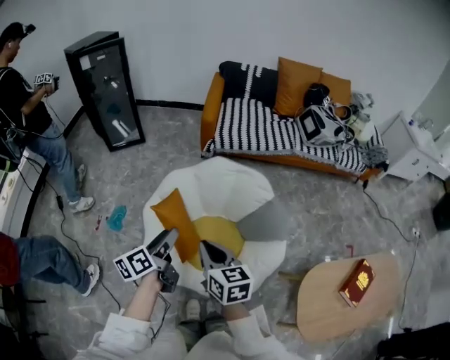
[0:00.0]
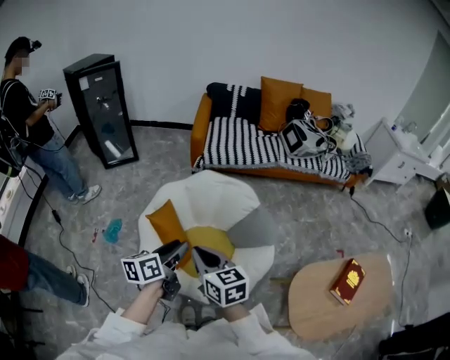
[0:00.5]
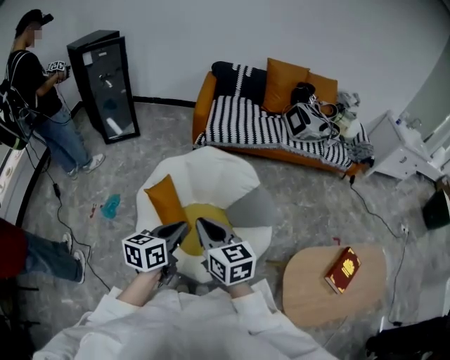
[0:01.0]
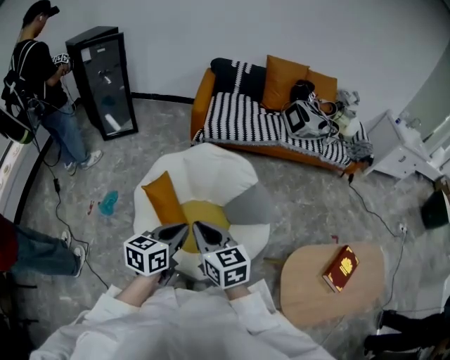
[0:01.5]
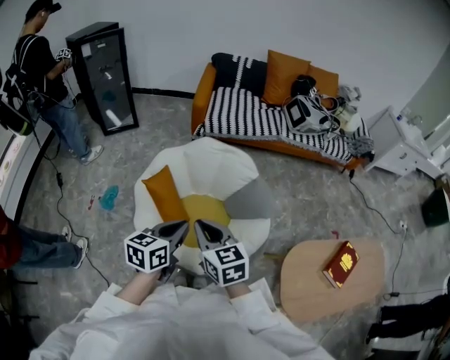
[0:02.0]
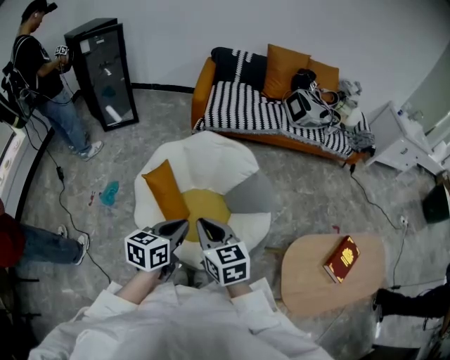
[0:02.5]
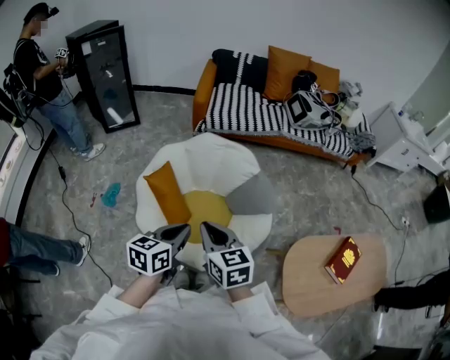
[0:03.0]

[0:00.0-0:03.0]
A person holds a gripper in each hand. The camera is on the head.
0:00.0 to 0:01.5: The left gripper is displaced to the right, backward and upward by approximately 15 cm, turns by roughly 40 degrees, and closes its fingers. Meanwhile the right gripper heads backward and upward, covering approximately 10 cm.
0:01.5 to 0:03.0: The grippers make only small movements.

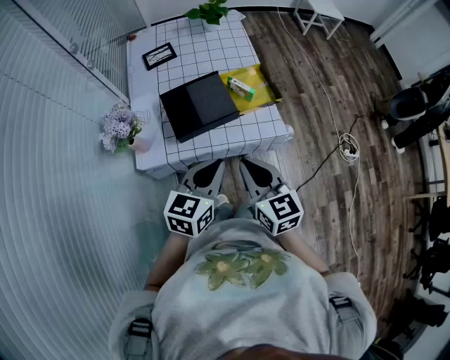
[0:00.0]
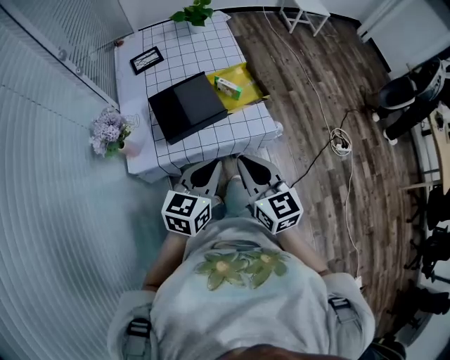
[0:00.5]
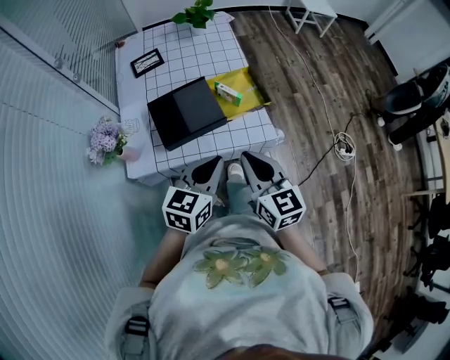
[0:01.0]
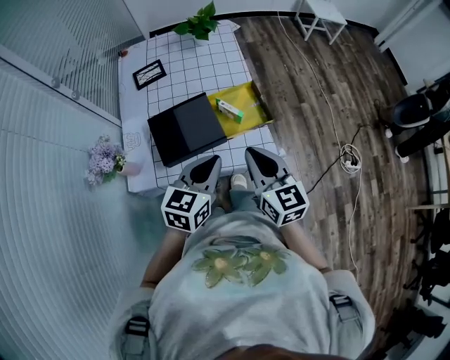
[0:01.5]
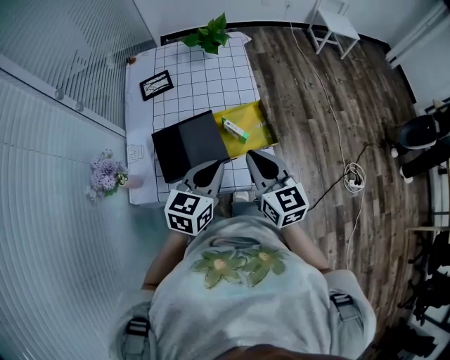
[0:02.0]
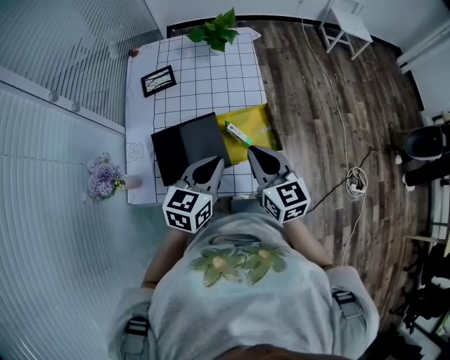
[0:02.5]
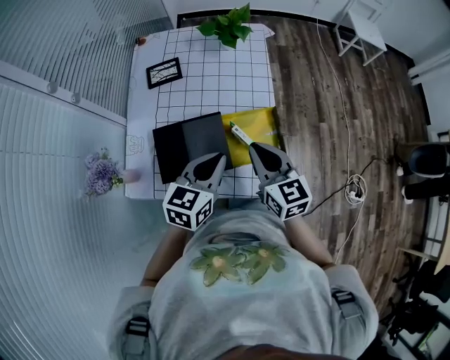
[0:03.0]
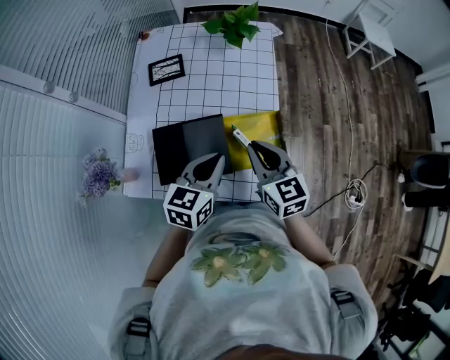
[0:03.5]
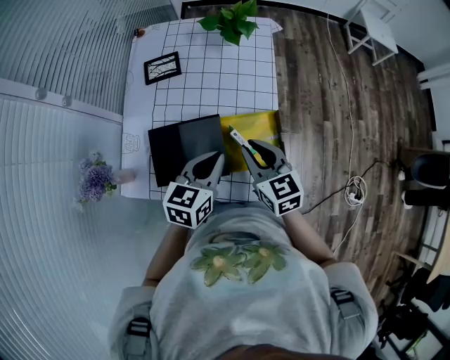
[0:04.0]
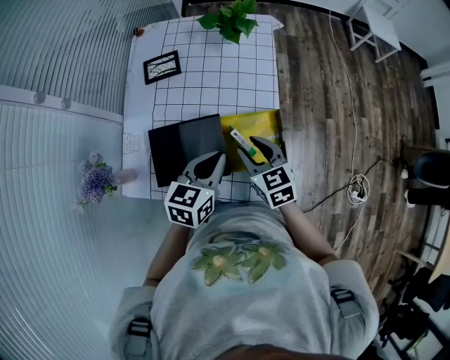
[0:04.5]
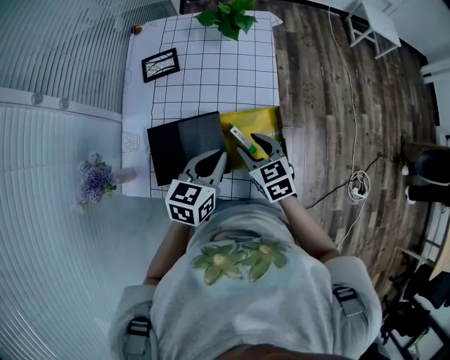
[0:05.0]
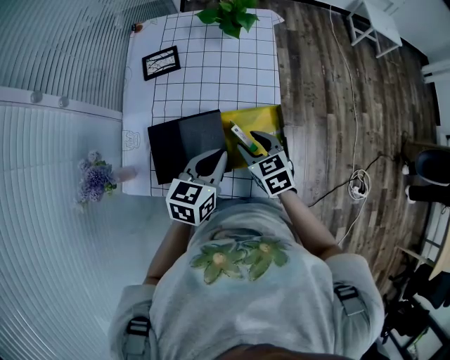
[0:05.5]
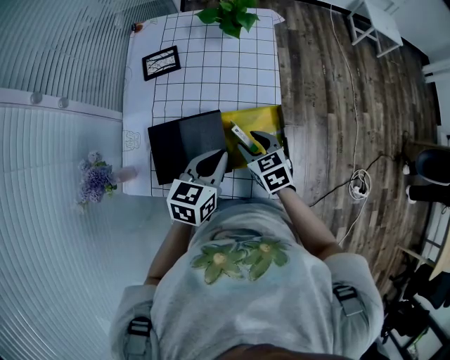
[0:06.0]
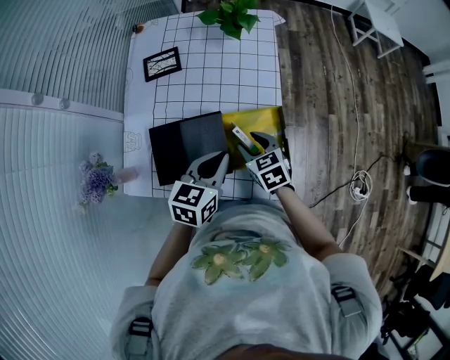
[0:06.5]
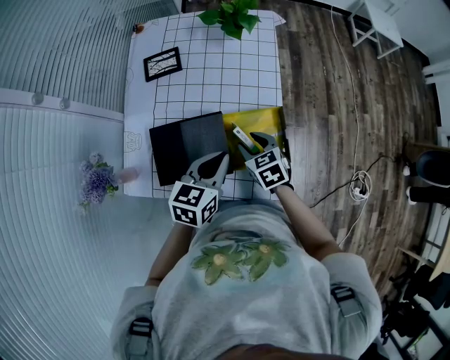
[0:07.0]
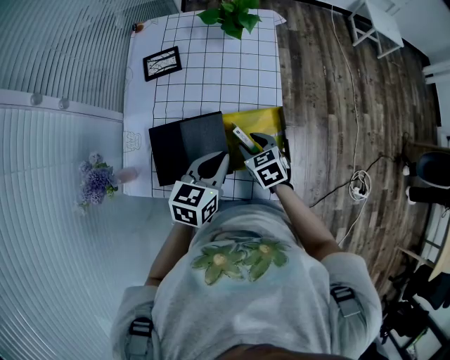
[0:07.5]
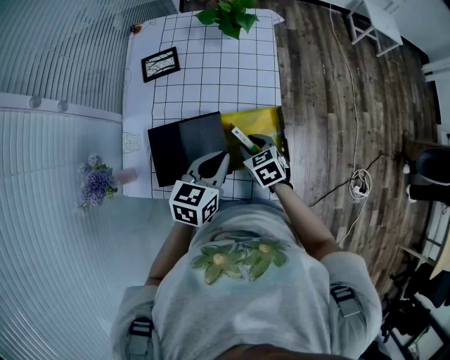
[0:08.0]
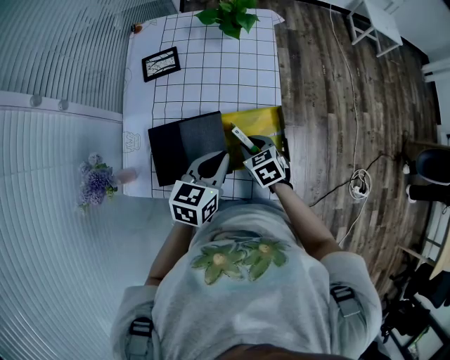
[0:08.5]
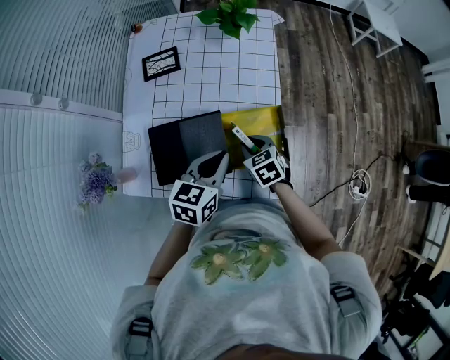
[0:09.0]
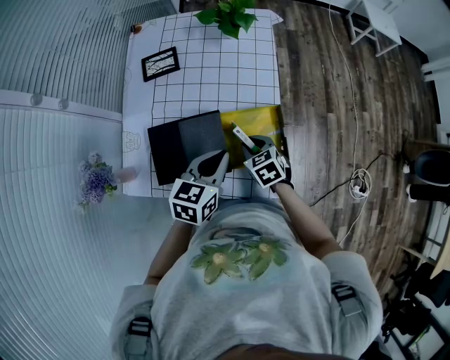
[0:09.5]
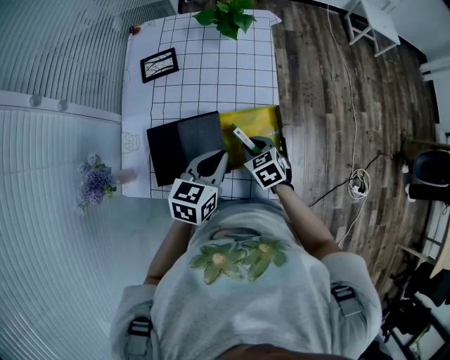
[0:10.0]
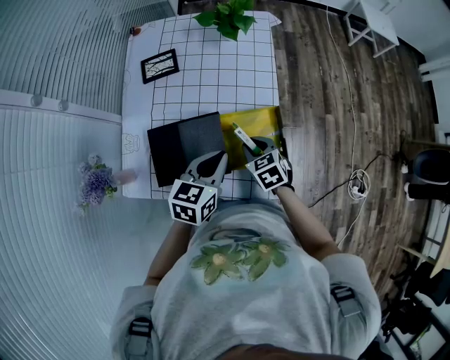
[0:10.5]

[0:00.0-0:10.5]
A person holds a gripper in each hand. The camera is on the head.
0:00.0 to 0:02.0: The grippers both shift forward by approximately 20 cm.
0:02.0 to 0:04.0: Both grippers move forward and downward, roughly 15 cm.
0:04.0 to 0:06.5: The right gripper moves downward, some 10 cm, rotates approximately 20 degrees, and opens.
0:06.5 to 0:10.5: The grippers move only a little.

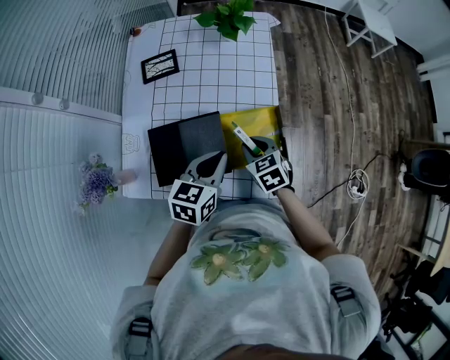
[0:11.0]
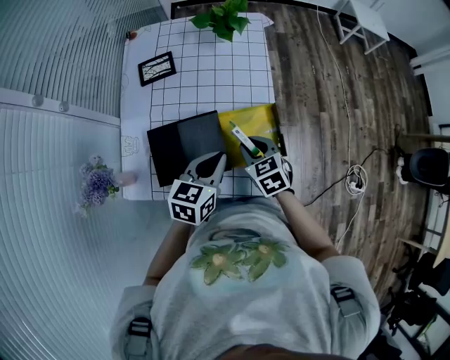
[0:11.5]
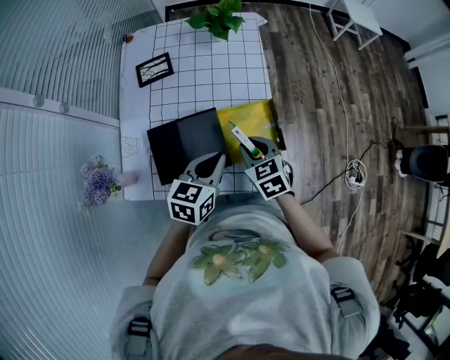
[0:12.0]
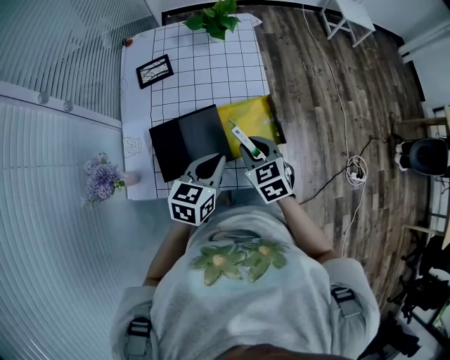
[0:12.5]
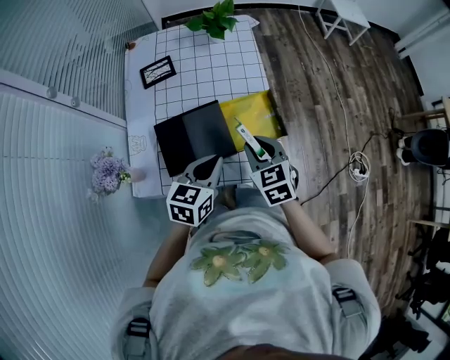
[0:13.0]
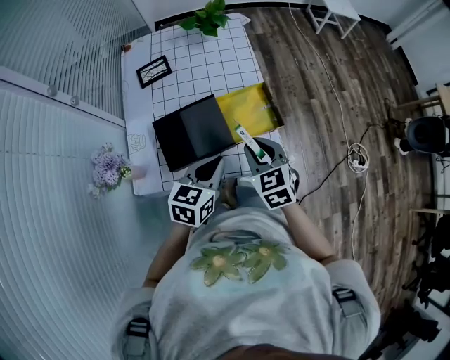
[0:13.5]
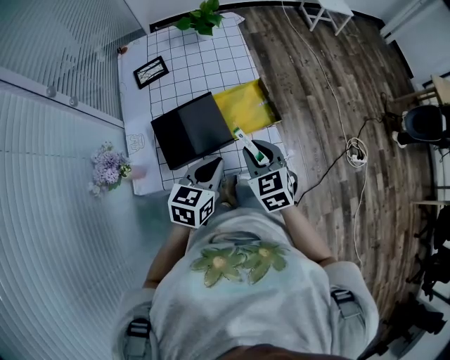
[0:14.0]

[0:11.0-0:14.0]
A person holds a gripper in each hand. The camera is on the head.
0:11.0 to 0:12.5: The right gripper moves upward and backward, approximately 10 cm, while the left gripper moves backward, roughly 5 cm.
0:12.5 to 0:14.0: Both grippers move backward, roughly 10 cm.

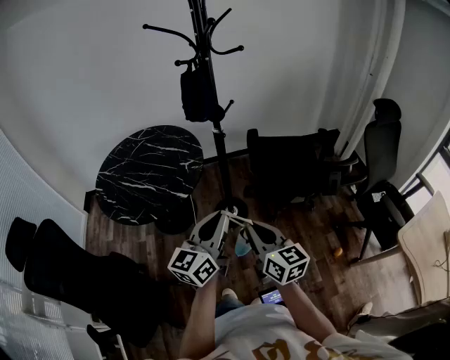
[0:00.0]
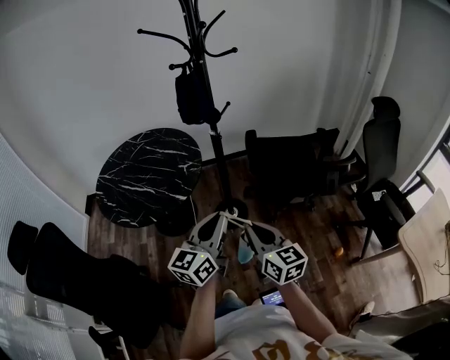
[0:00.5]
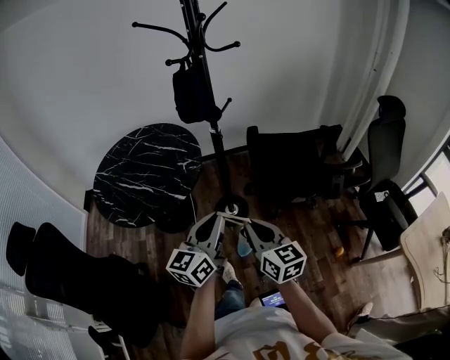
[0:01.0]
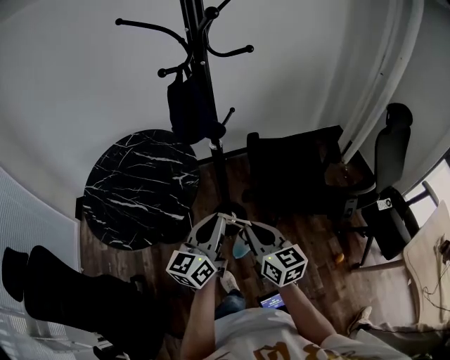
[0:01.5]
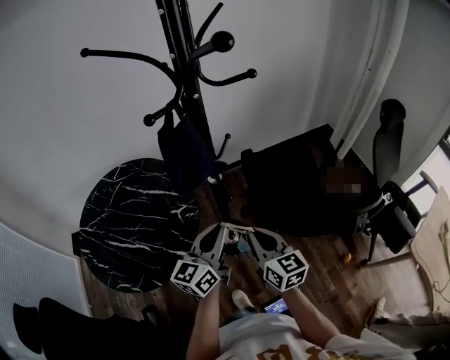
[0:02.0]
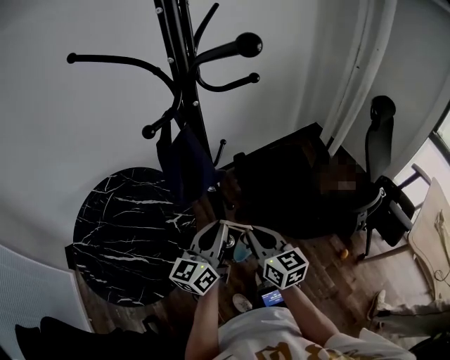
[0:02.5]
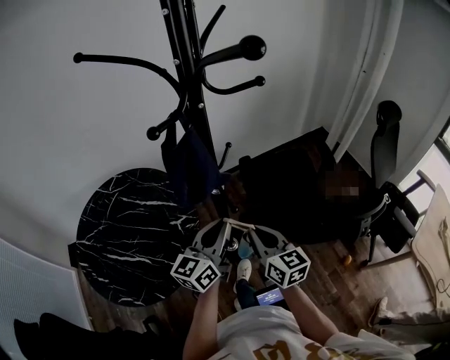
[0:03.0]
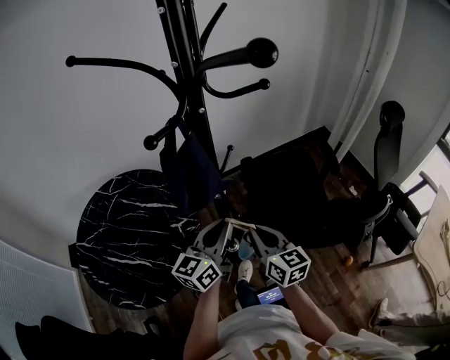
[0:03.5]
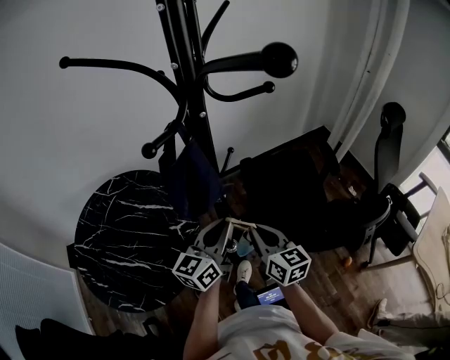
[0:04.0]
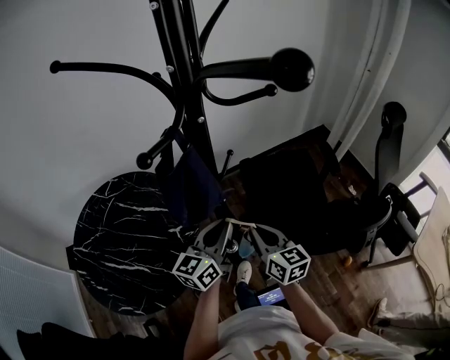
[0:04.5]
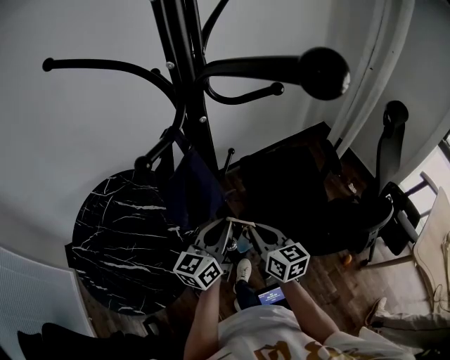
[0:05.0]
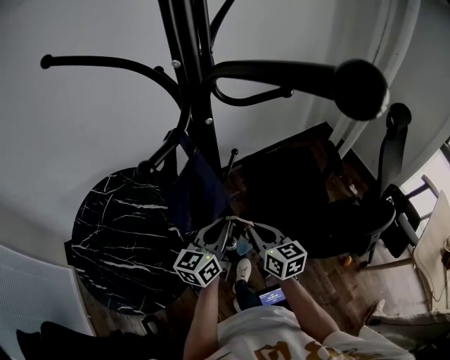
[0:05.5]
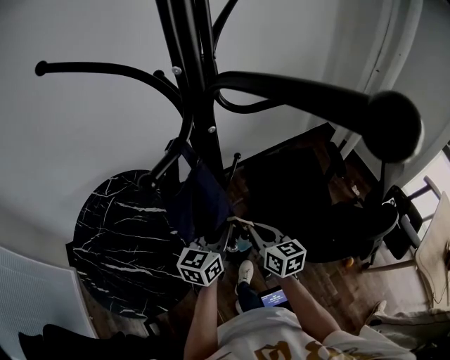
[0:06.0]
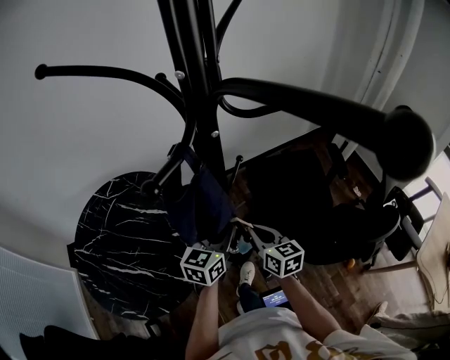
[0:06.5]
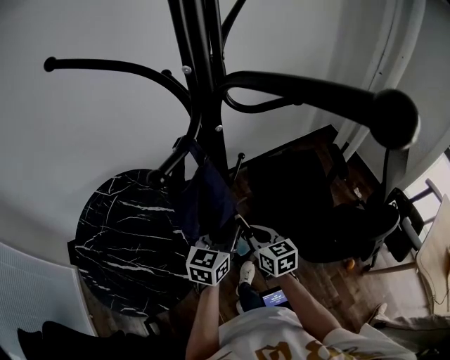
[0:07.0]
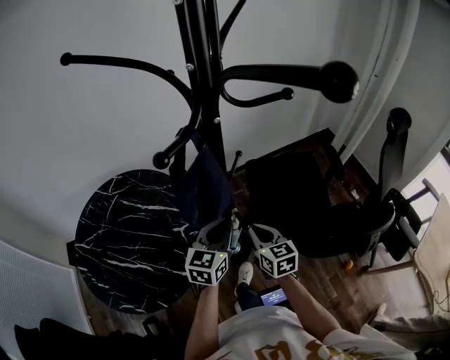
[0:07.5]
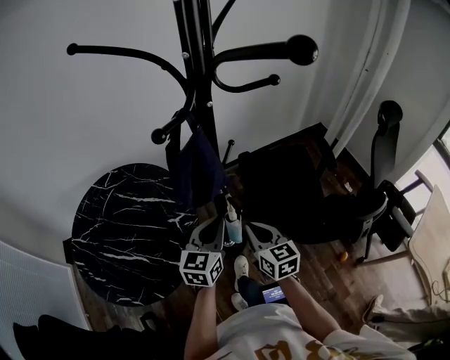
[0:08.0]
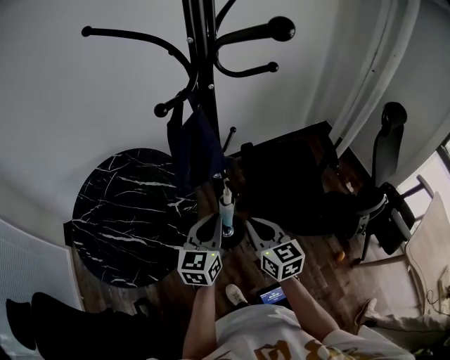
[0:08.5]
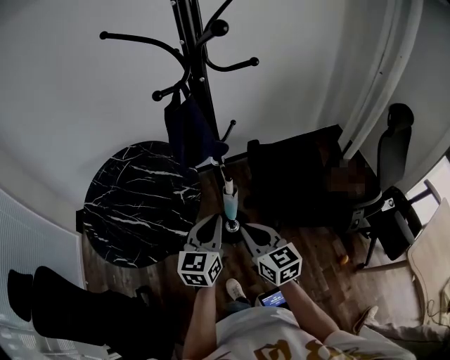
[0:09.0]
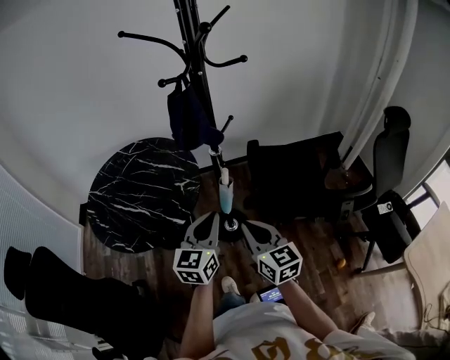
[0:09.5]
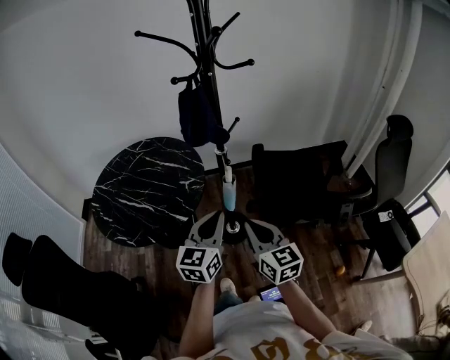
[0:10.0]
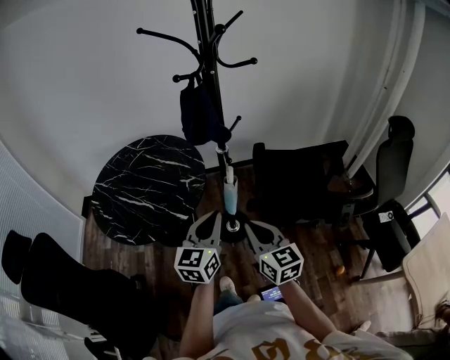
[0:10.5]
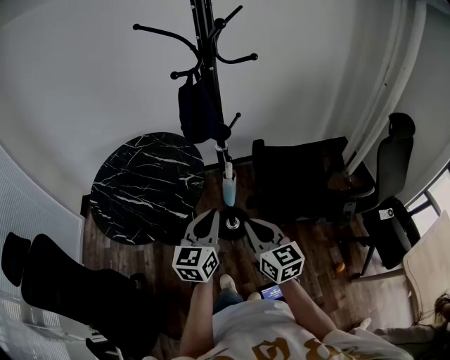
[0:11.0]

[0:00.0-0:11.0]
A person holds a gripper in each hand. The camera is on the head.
0:00.0 to 0:02.0: The grippers both shift forward by about 25 cm.
0:02.0 to 0:03.5: Both grippers travel together forward, roughly 5 cm.
0:03.5 to 0:05.5: Both grippers move forward, about 5 cm.
0:05.5 to 0:07.5: The grippers stay close to where they were, moving slightly.
0:07.5 to 0:09.0: The left gripper moves backward, roughly 15 cm; the right gripper is displaced backward and upward by some 20 cm.
0:09.0 to 0:11.0: Both grippers travel together backward, approximately 10 cm.
